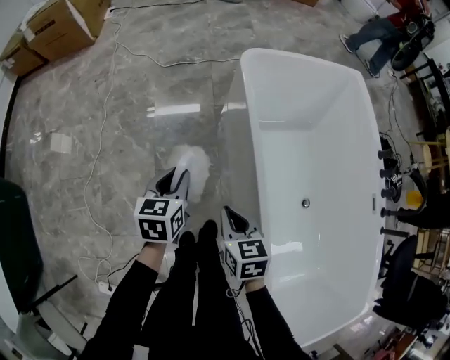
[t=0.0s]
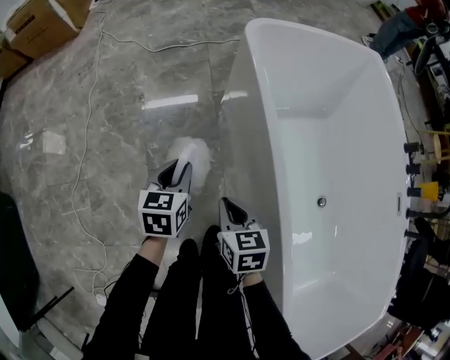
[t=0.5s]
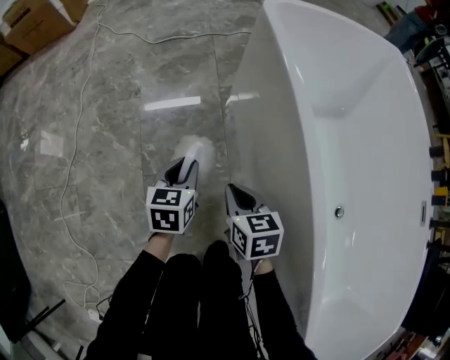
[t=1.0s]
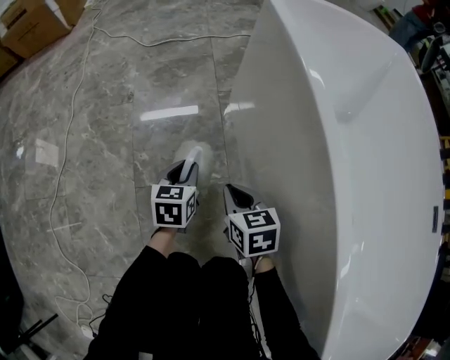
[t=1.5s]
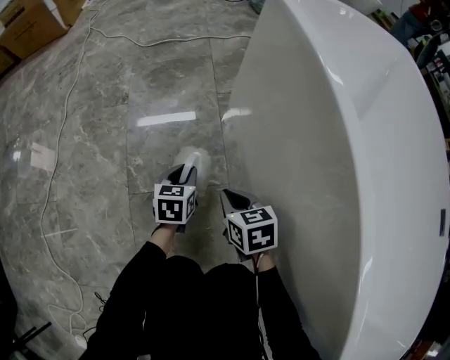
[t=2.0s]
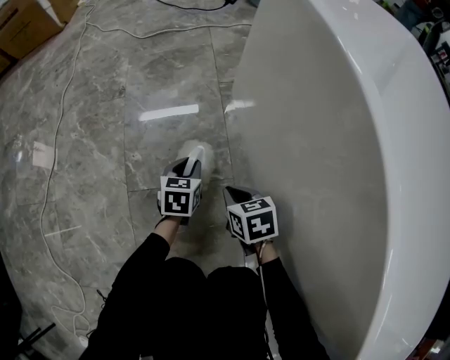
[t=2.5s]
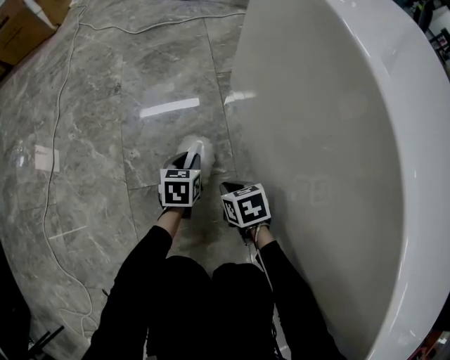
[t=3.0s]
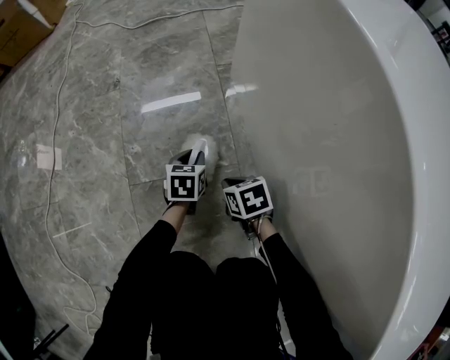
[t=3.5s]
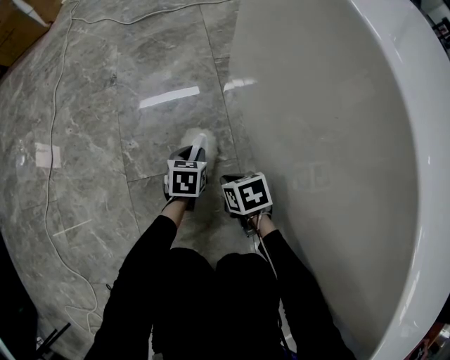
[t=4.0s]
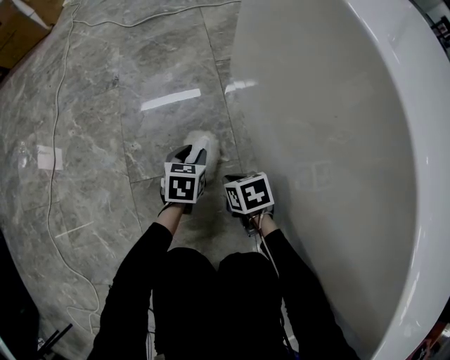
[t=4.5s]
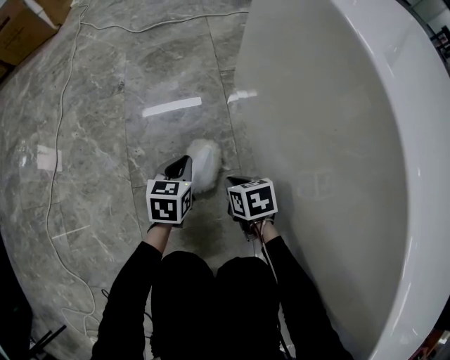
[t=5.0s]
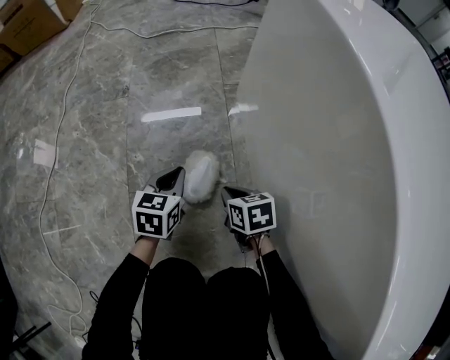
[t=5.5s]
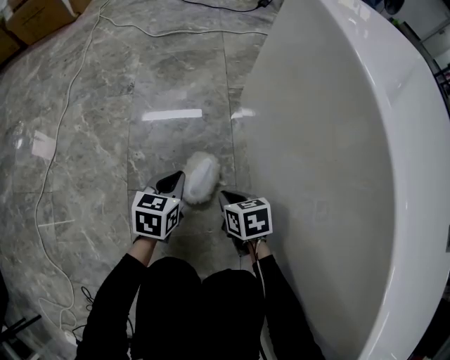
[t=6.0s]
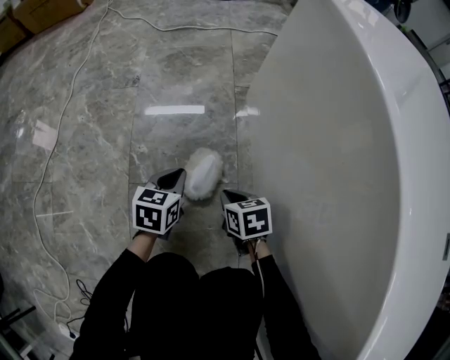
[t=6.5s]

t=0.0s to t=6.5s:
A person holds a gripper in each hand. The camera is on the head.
t=0.0s to t=2.0s: Both grippers travel together downward, some 50 cm.
t=2.0s to t=4.5s: The right gripper travels downward by roughly 15 cm. The left gripper heads downward, covering roughly 5 cm.
t=4.5s to t=6.5s: The left gripper shifts approximately 10 cm to the left and upward, and closes its fingers.

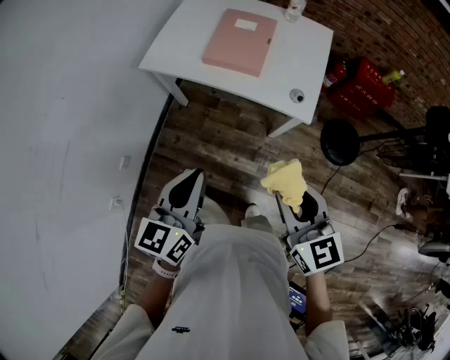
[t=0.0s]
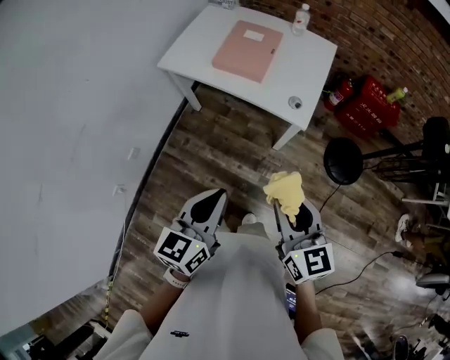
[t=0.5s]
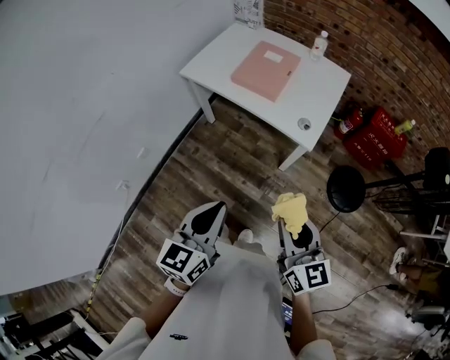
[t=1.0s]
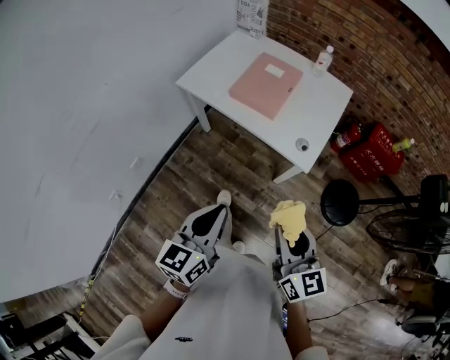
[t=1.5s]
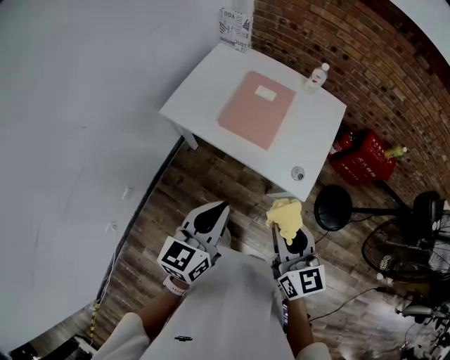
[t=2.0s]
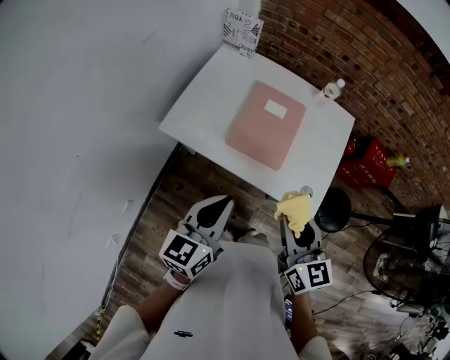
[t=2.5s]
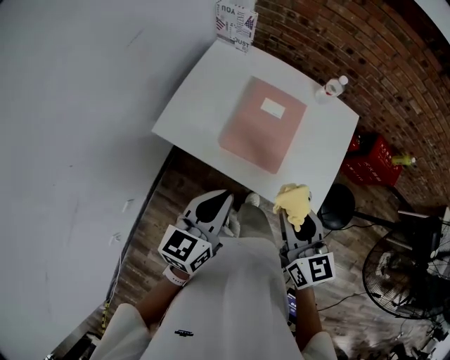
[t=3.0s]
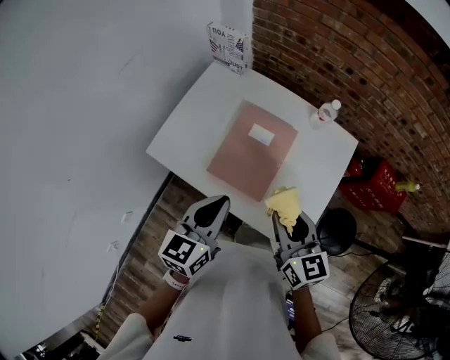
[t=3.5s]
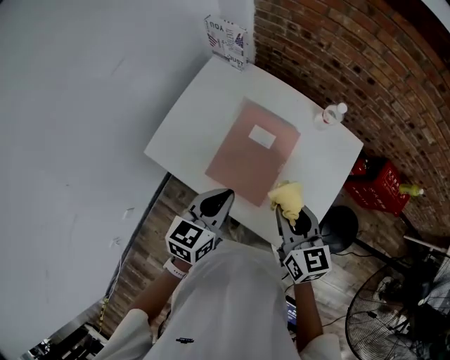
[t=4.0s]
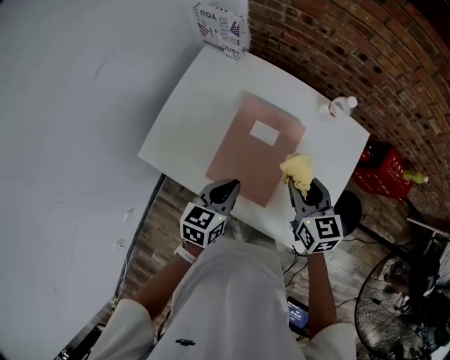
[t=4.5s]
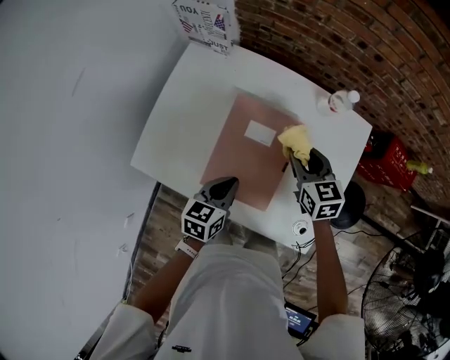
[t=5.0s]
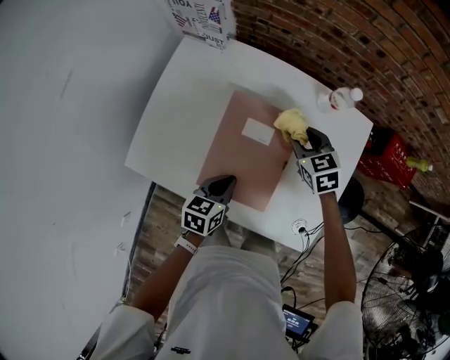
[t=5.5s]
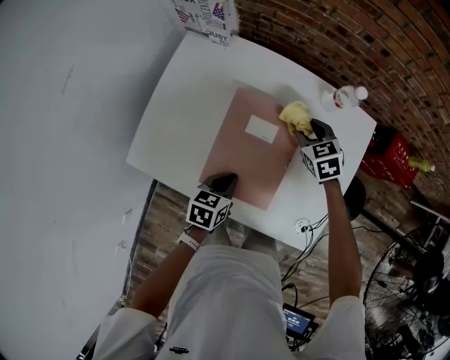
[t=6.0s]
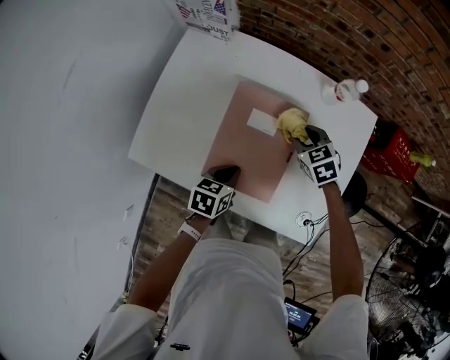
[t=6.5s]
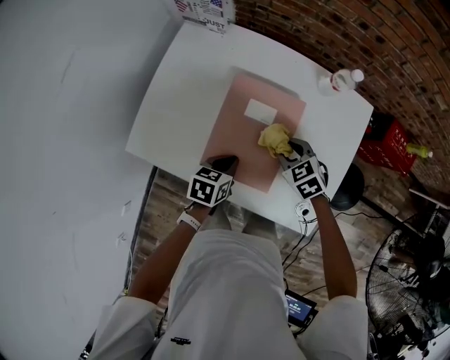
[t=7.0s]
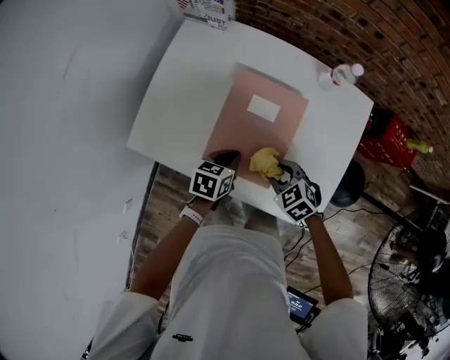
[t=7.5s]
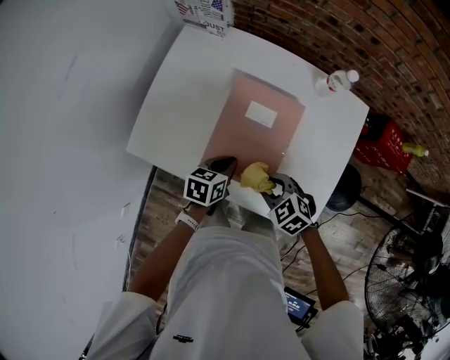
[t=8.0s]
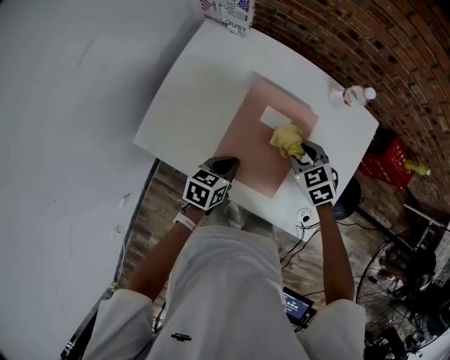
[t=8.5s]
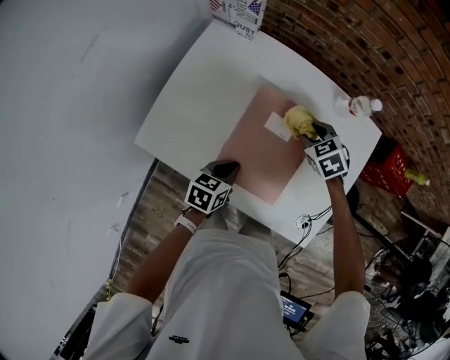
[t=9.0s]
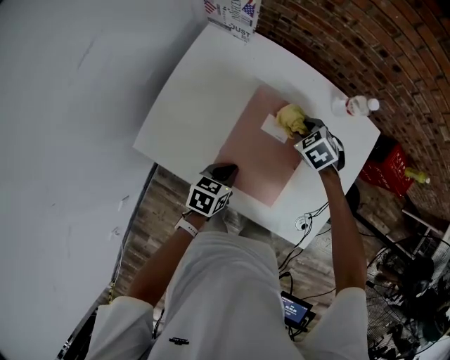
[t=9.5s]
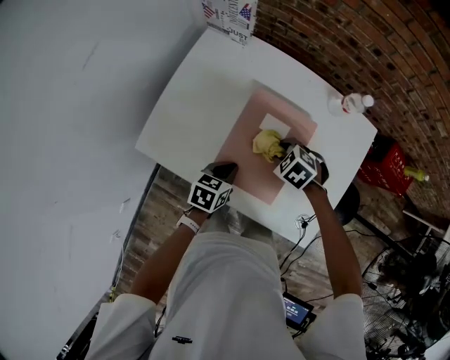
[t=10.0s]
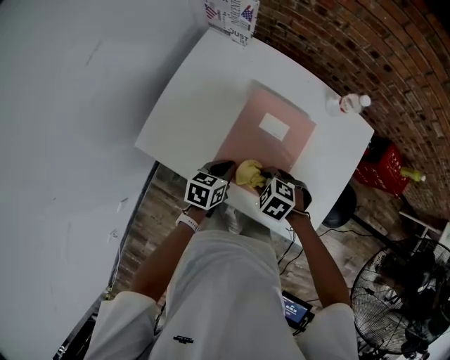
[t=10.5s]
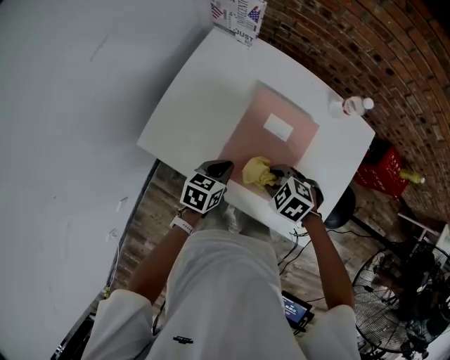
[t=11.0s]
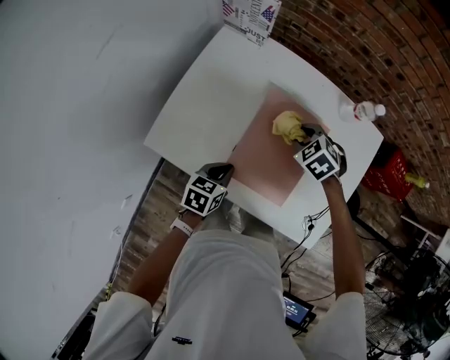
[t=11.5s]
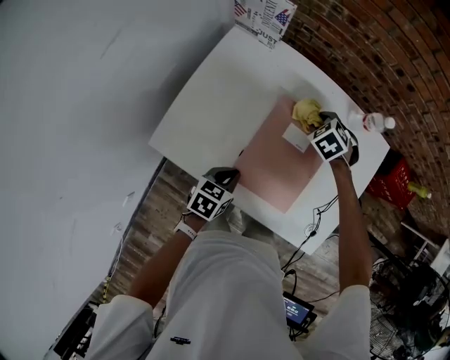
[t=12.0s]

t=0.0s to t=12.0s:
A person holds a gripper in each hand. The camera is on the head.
t=0.0s to t=2.0s: The right gripper heads forward, covering roughly 15 cm, while the left gripper is displaced forward and to the right by some 15 cm.
t=2.0s to t=4.0s: The two grippers go roughly 30 cm forward.
t=4.0s to t=6.0s: The right gripper shifts about 30 cm forward and downward, and rotates about 30 degrees, while the left gripper moves downward, some 20 cm, and changes its angle by roughly 30 degrees.
t=6.0s to t=8.0s: The right gripper is displaced backward by roughly 25 cm, and changes its angle by some 30 degrees.
t=8.0s to t=10.0s: The right gripper travels forward by roughly 15 cm.
t=10.0s to t=12.0s: The right gripper moves approximately 15 cm.

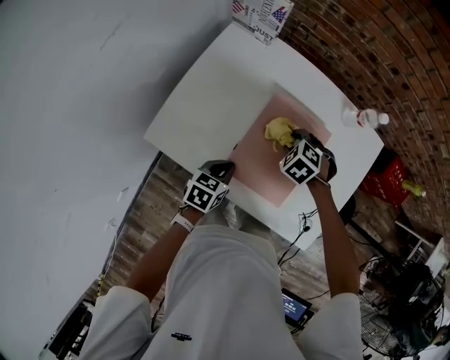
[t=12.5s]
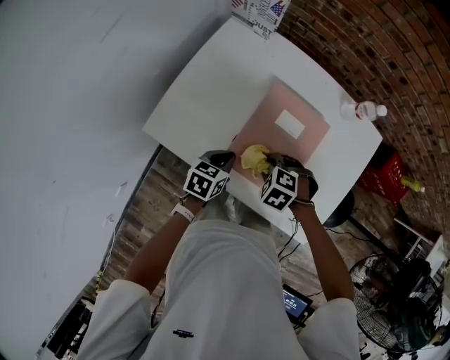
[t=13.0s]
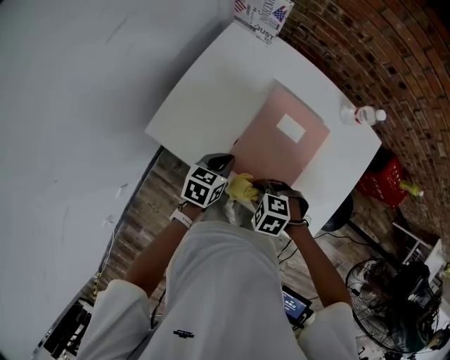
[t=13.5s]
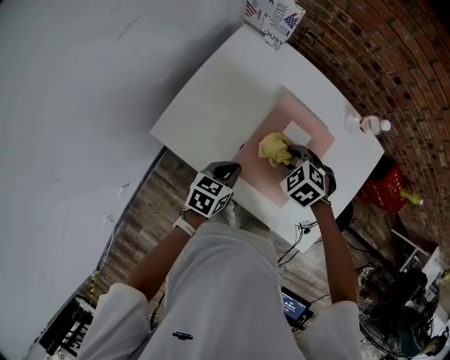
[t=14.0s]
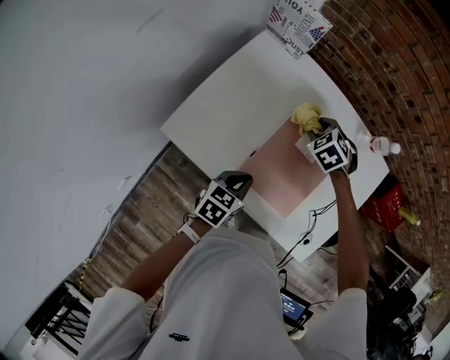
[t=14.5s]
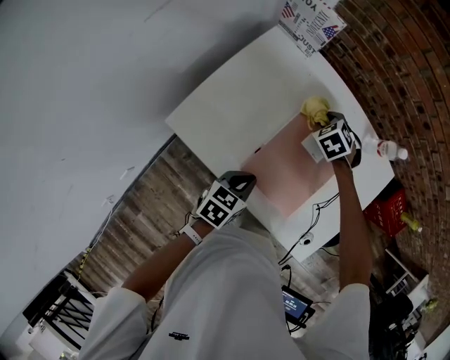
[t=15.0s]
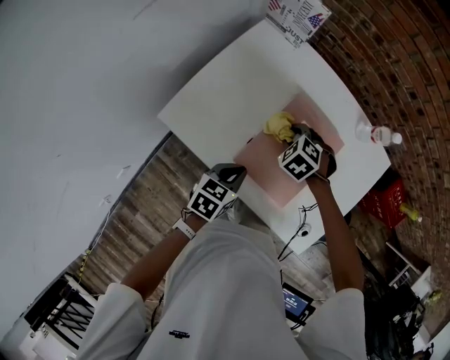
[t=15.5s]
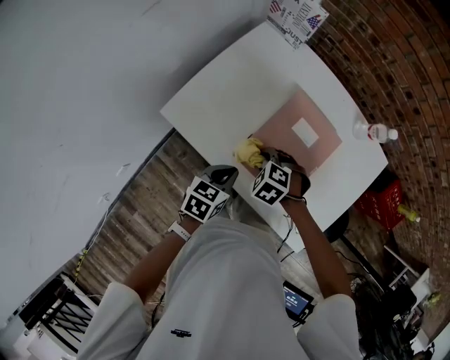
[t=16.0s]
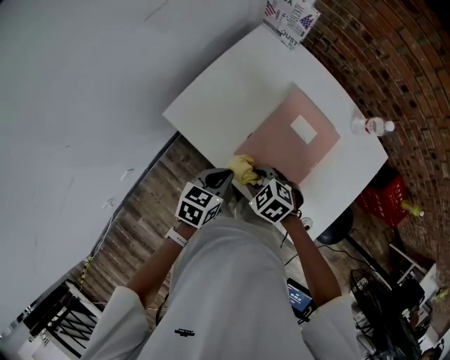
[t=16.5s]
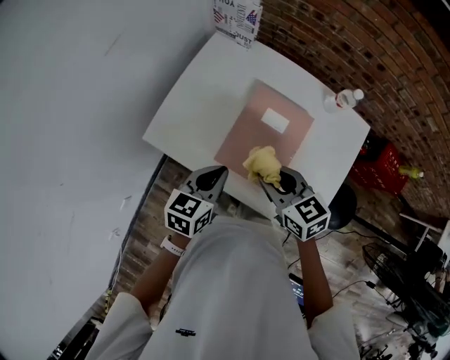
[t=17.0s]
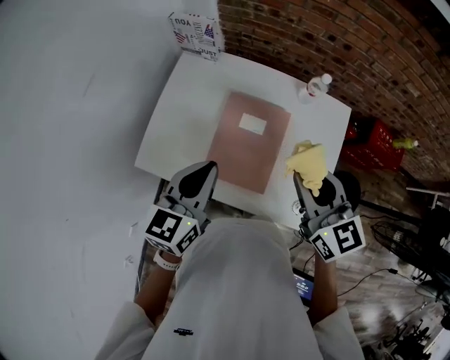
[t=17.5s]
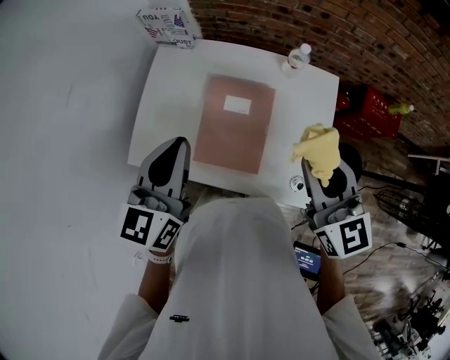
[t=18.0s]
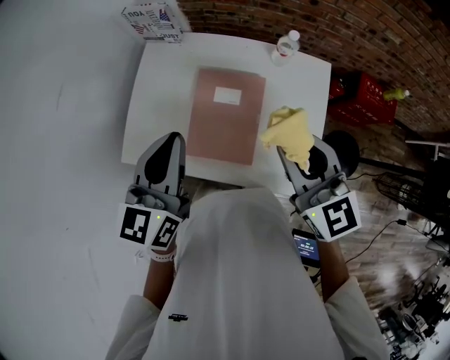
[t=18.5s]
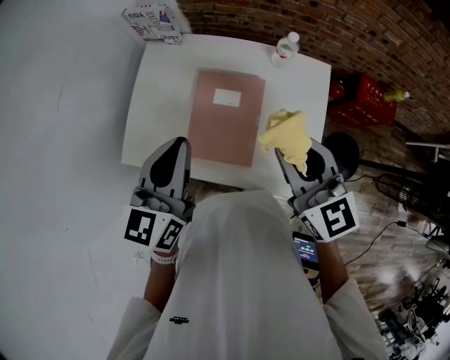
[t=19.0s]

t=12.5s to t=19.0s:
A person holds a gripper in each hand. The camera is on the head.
t=14.5s to t=17.0s: The left gripper travels upward by some 10 cm; the right gripper changes place by some 25 cm, and points its fingers some 40 degrees further upward.
t=17.0s to t=19.0s: The left gripper heads upward, covering approximately 20 cm, and rotates about 20 degrees, while the right gripper heads upward and to the right, covering roughly 20 cm, and changes its angle by roughly 30 degrees.

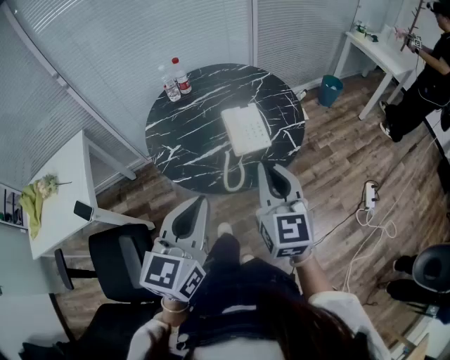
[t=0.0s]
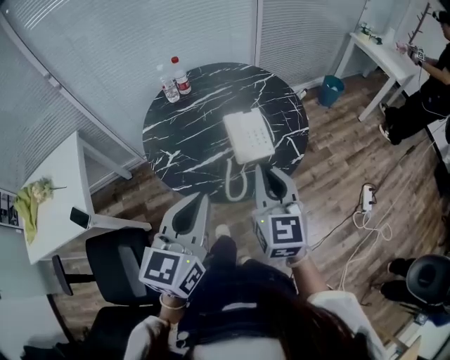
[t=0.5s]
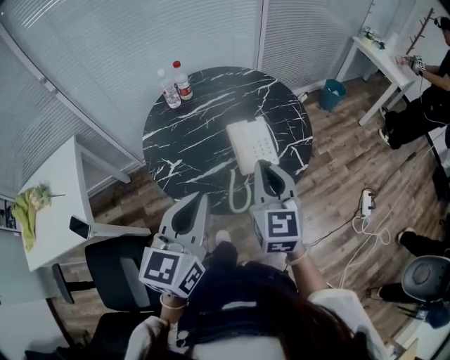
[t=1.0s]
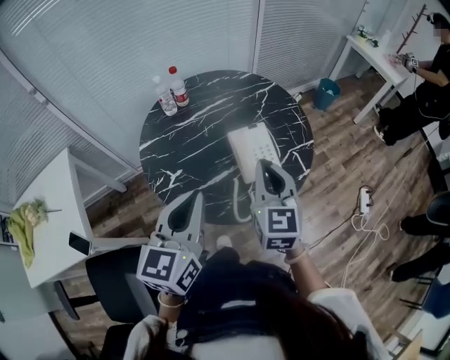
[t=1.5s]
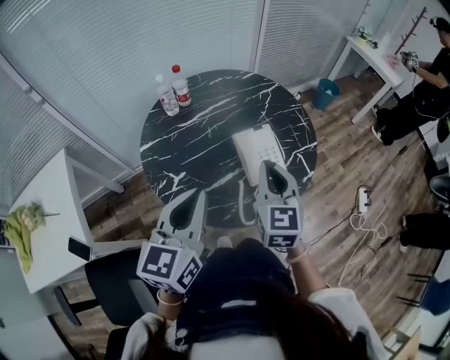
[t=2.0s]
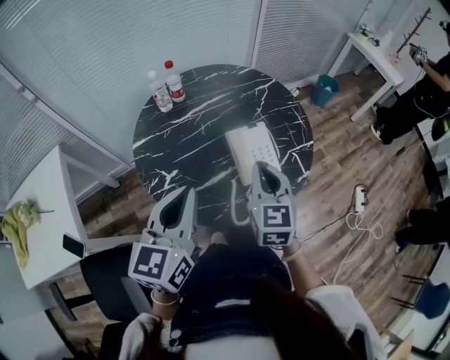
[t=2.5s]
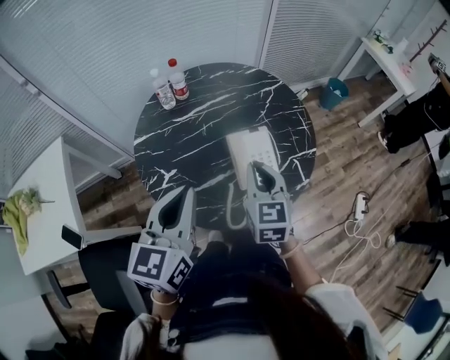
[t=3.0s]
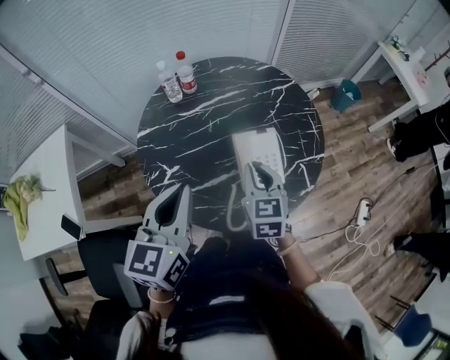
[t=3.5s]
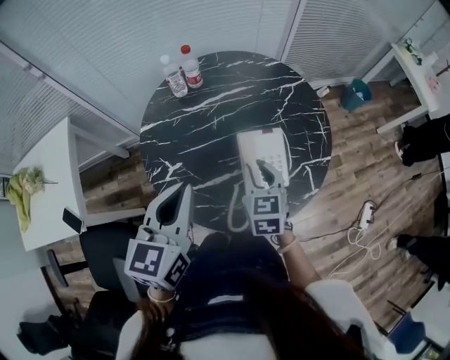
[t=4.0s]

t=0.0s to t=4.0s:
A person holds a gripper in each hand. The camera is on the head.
t=0.0s to t=2.0s: Both grippers travel together forward and to the left, roughly 20 cm.
t=2.0s to t=4.0s: The left gripper travels forward by approximately 5 cm. Meanwhile the right gripper travels downward and forward by roughly 15 cm, changes its angle by roughly 20 degrees, and opens up.
